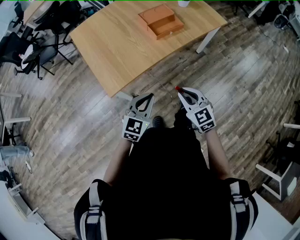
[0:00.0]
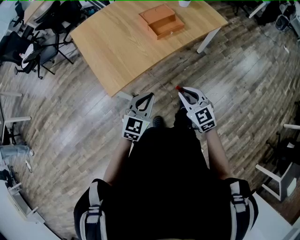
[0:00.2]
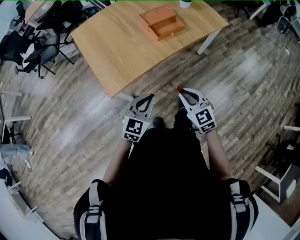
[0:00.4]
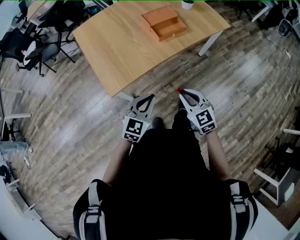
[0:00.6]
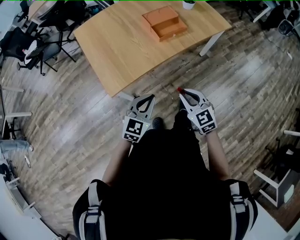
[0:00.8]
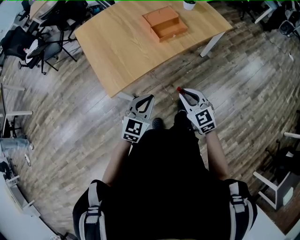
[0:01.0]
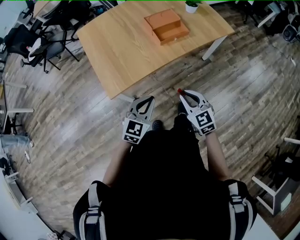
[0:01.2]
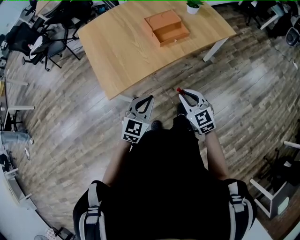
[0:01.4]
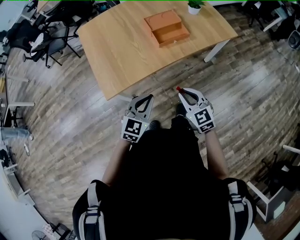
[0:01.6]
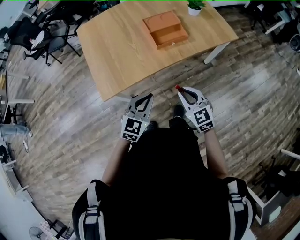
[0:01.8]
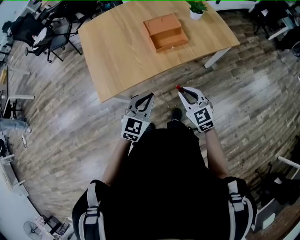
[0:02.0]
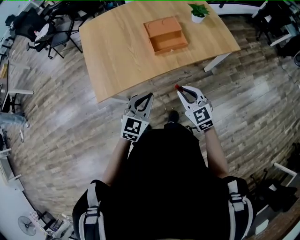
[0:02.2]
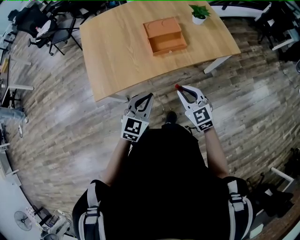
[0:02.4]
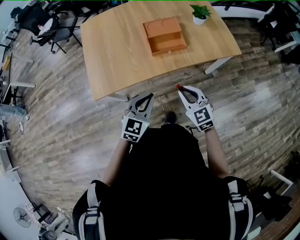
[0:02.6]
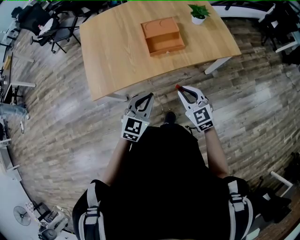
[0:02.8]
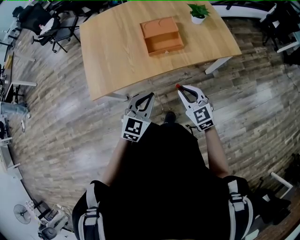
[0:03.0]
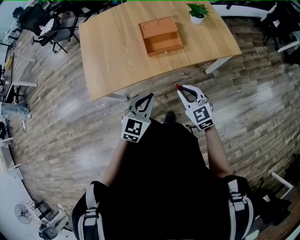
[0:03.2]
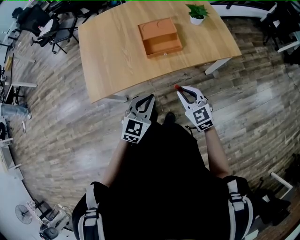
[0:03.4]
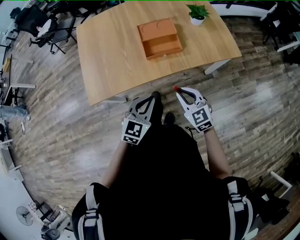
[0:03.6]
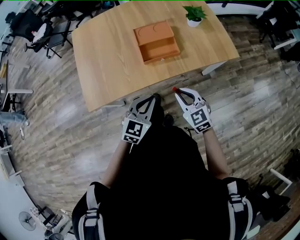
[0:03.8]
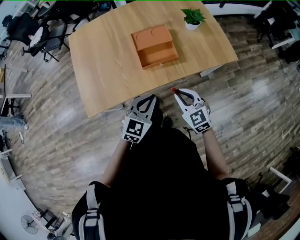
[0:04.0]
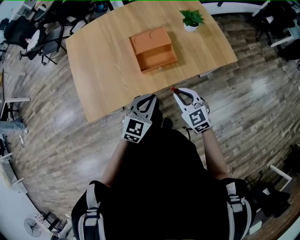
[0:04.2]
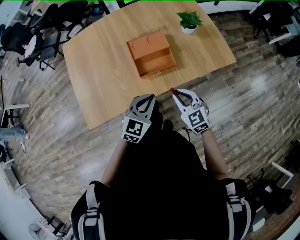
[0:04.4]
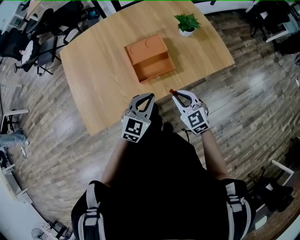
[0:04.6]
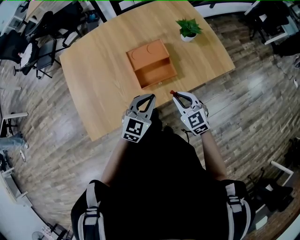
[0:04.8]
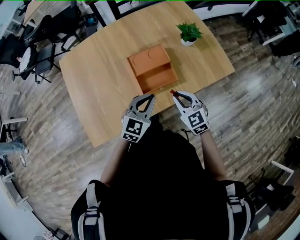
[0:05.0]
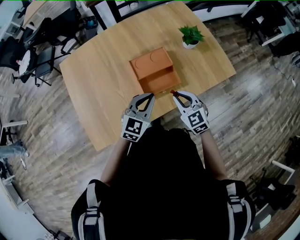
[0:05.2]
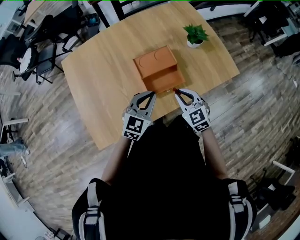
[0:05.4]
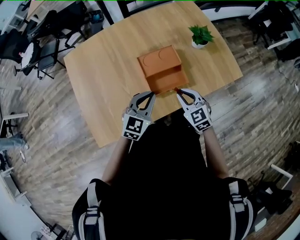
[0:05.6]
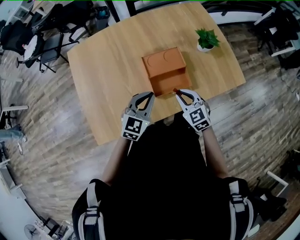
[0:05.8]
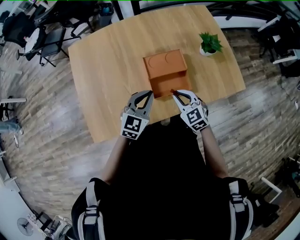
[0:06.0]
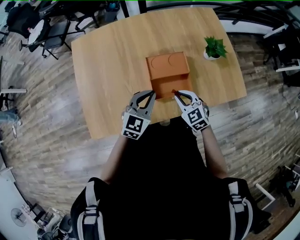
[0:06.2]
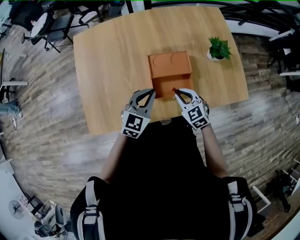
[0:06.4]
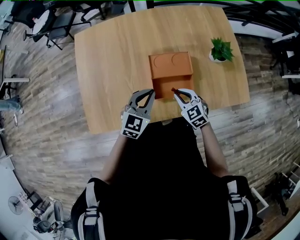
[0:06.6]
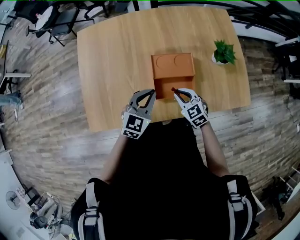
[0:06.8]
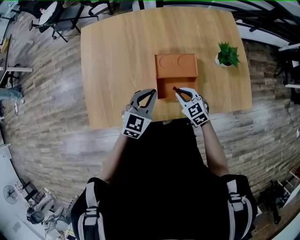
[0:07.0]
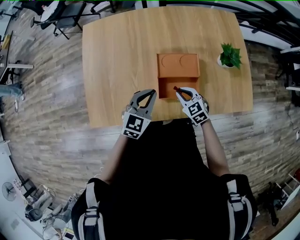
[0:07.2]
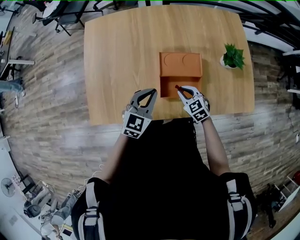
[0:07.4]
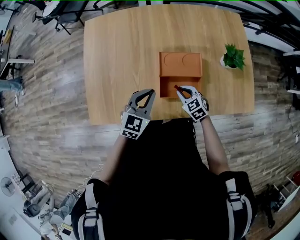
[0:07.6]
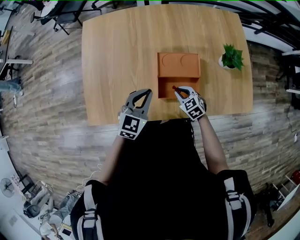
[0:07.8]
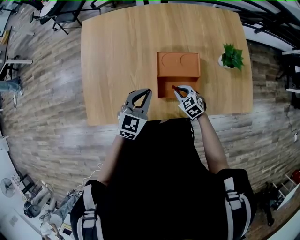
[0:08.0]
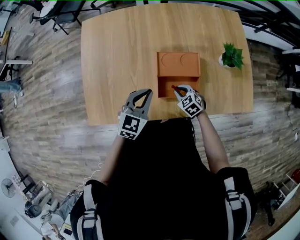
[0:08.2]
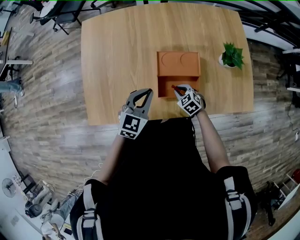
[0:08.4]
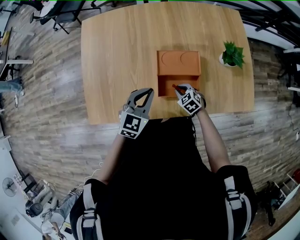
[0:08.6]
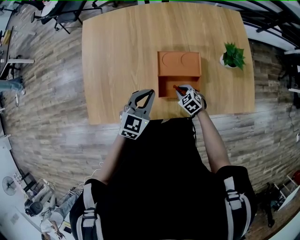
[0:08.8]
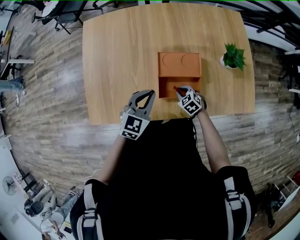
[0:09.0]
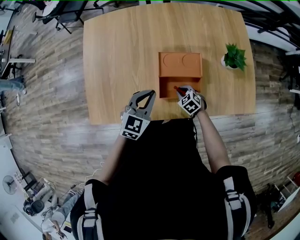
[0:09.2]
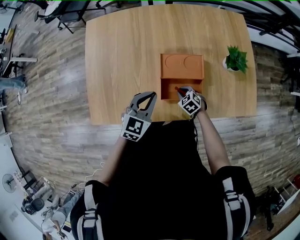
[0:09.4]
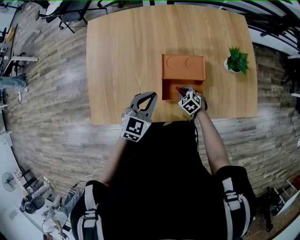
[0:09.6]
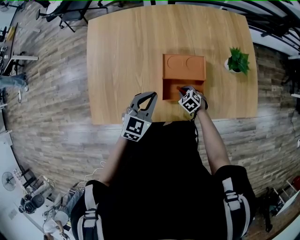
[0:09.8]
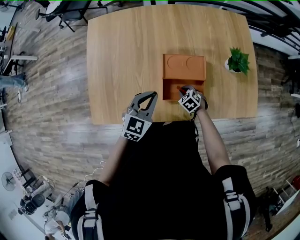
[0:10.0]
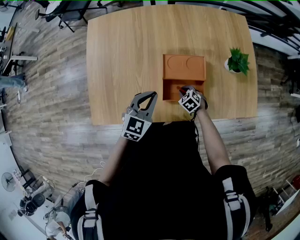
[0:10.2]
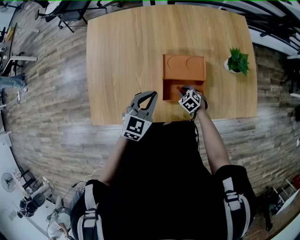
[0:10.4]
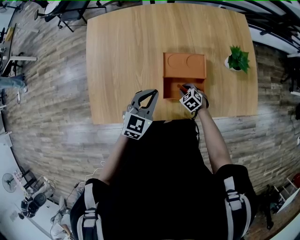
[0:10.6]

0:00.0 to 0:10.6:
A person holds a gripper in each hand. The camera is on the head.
0:00.0 to 0:01.6: Both grippers travel together forward and to the right, some 10 cm.
0:01.6 to 0:03.0: The grippers both shift to the right and forward by some 20 cm.
0:03.0 to 0:04.6: The two grippers go some 20 cm forward.
0:04.6 to 0:06.0: Both grippers move forward and to the left, some 15 cm.
0:06.0 to 0:07.6: The right gripper heads downward and forward, covering about 10 cm.
0:07.6 to 0:09.0: The right gripper goes approximately 5 cm downward.
0:09.0 to 0:10.6: The grippers move only a little.

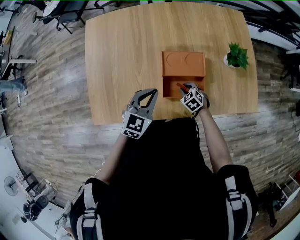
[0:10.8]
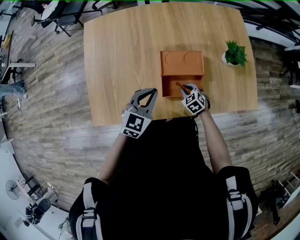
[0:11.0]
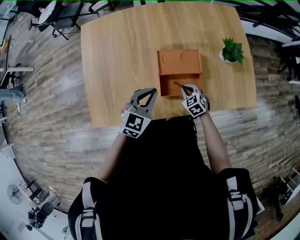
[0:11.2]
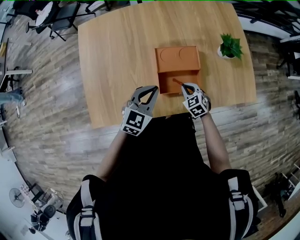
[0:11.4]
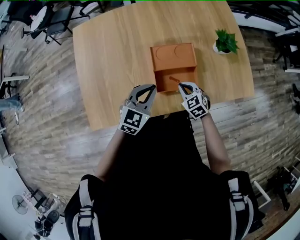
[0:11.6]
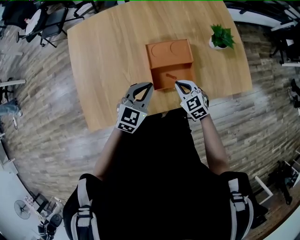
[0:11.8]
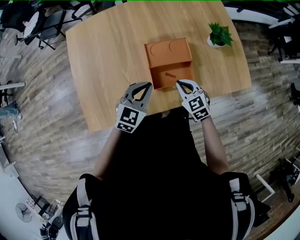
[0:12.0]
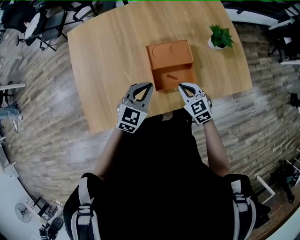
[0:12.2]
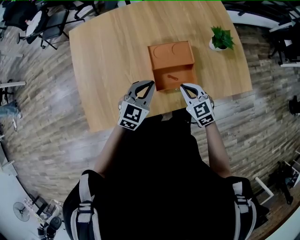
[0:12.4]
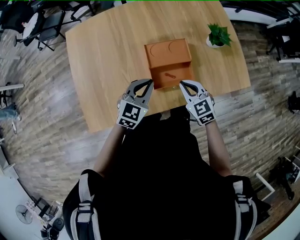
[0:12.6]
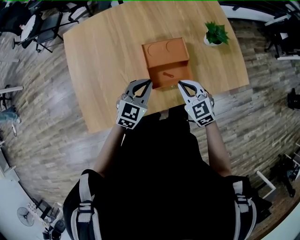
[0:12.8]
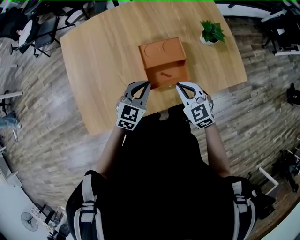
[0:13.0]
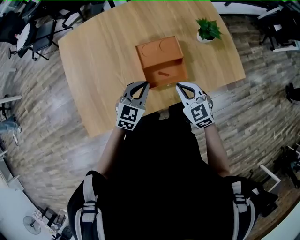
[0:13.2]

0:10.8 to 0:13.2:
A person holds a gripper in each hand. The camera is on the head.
0:10.8 to 0:12.0: The right gripper is displaced upward by approximately 15 cm, and changes its angle by roughly 30 degrees.
0:12.0 to 0:13.2: The right gripper travels upward by roughly 5 cm.

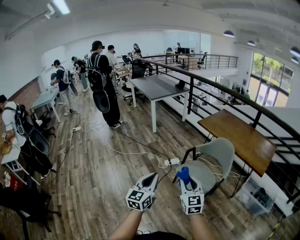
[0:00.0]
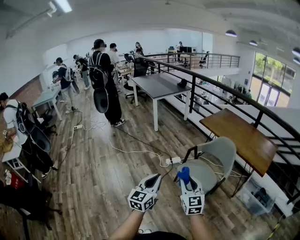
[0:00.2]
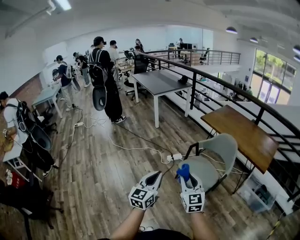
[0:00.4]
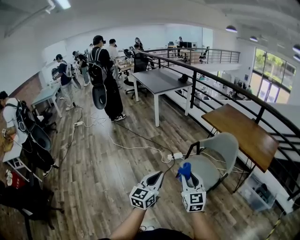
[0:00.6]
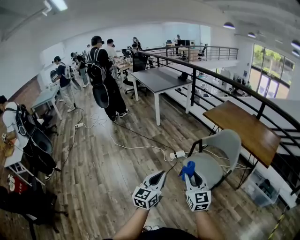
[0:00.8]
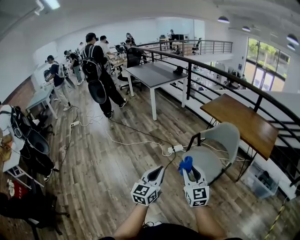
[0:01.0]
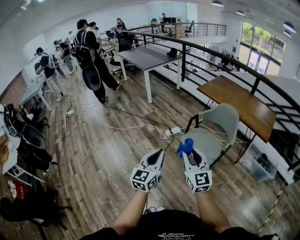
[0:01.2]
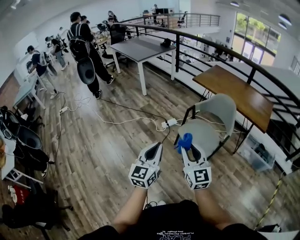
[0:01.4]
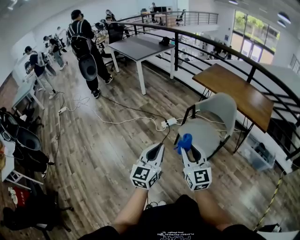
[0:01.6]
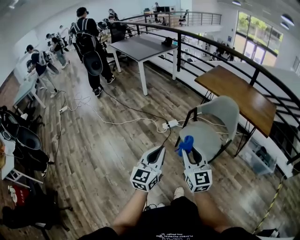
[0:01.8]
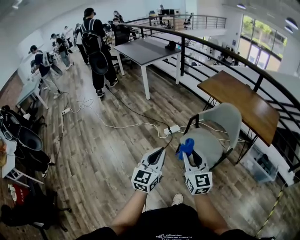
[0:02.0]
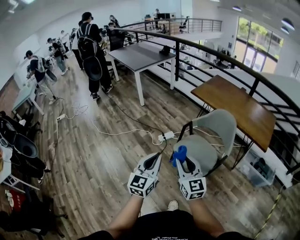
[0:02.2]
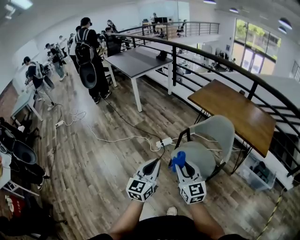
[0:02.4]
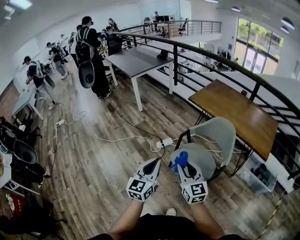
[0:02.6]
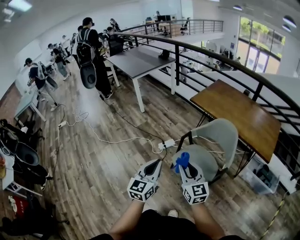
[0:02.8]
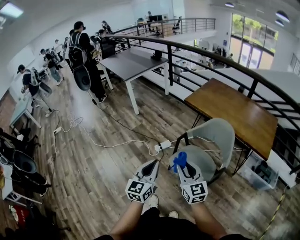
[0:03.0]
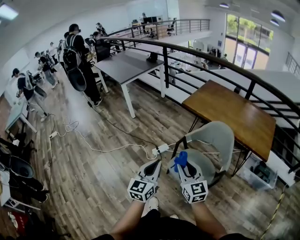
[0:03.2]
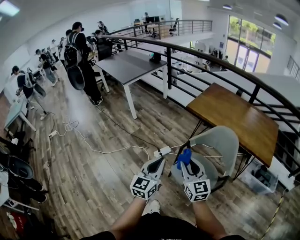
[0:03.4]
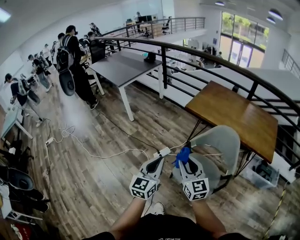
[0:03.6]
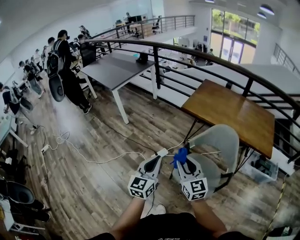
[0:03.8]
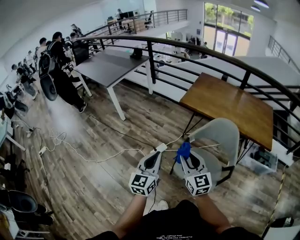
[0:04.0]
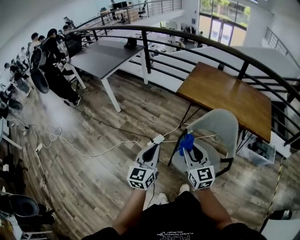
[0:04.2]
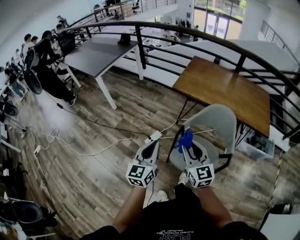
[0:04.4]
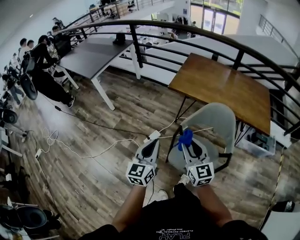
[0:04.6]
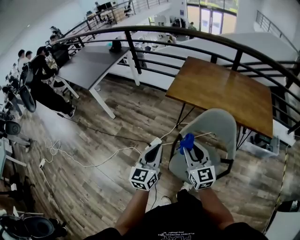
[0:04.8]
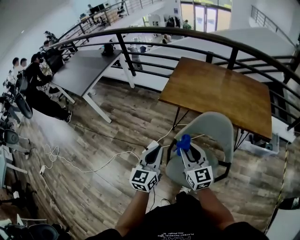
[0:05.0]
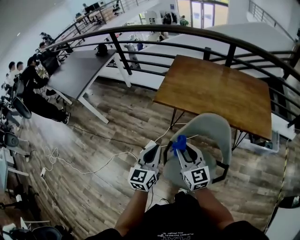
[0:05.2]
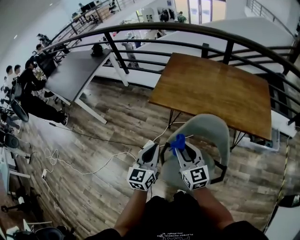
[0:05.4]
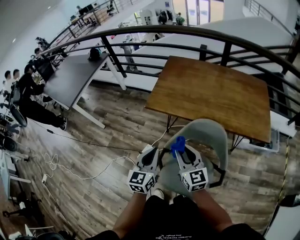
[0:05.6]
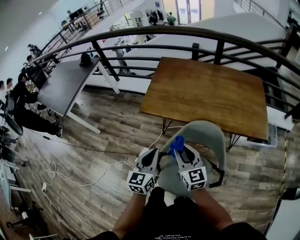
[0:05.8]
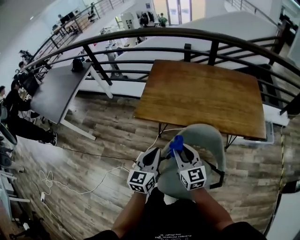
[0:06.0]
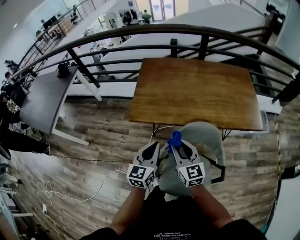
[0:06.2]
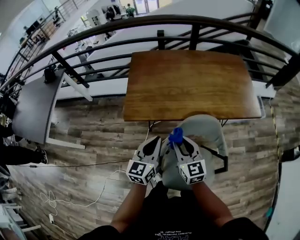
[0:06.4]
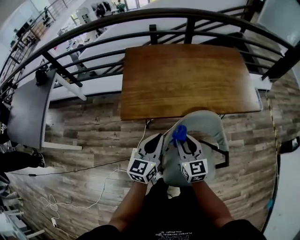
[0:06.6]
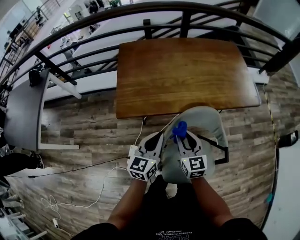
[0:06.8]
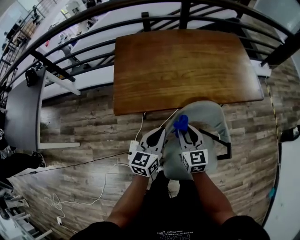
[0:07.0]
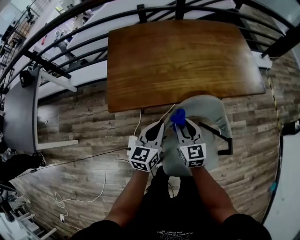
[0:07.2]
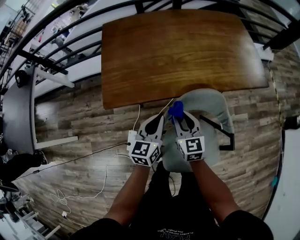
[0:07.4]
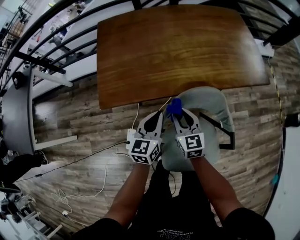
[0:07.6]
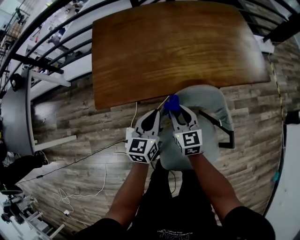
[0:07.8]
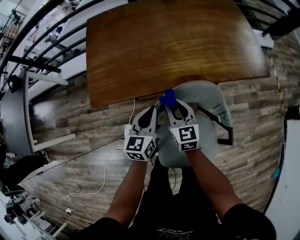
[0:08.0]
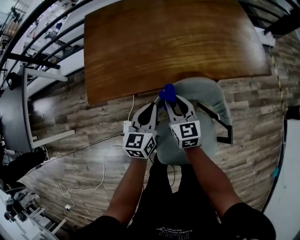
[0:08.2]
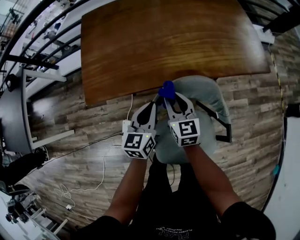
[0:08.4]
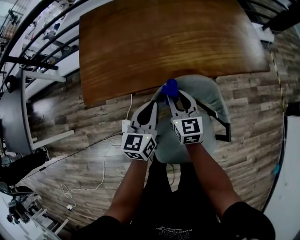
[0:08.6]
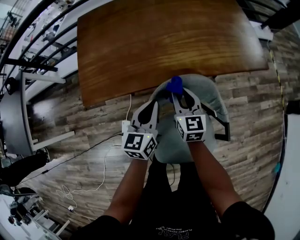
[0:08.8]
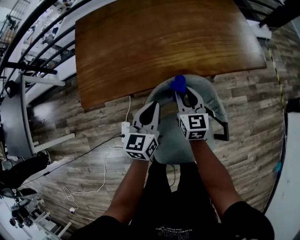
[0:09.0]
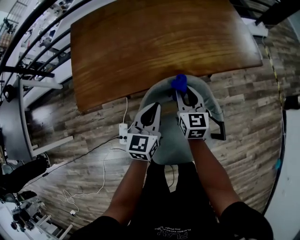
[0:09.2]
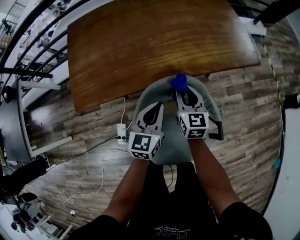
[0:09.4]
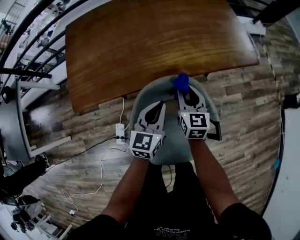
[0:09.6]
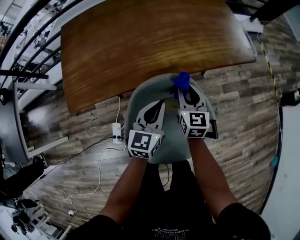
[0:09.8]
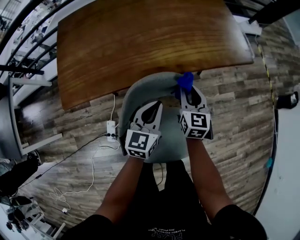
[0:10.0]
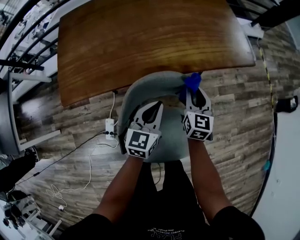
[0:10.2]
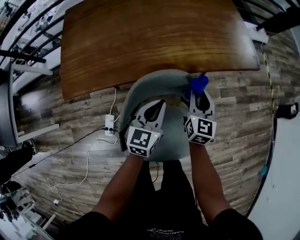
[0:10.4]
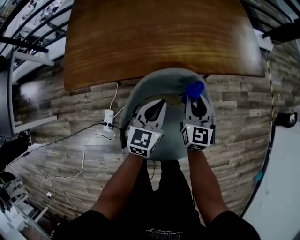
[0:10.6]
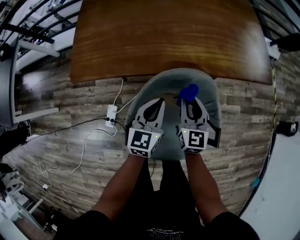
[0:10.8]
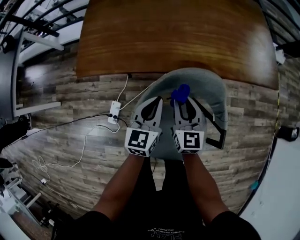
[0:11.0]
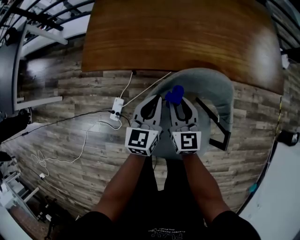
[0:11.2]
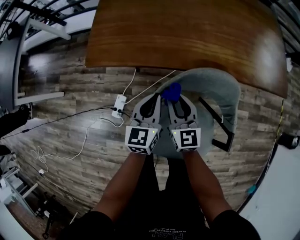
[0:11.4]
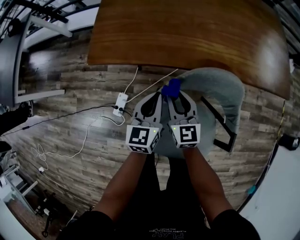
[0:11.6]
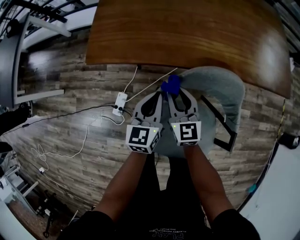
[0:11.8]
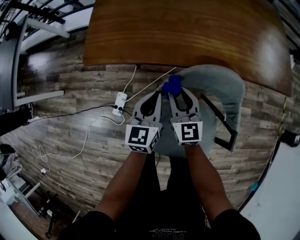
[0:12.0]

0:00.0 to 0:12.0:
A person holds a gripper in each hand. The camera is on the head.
0:00.0 to 0:01.6: The left gripper heads to the left, covering approximately 5 cm. The right gripper heads to the left, covering about 10 cm.
0:01.6 to 0:03.0: The grippers both shift forward and to the right by some 25 cm.
0:03.0 to 0:04.4: The two grippers go about 20 cm forward.
0:04.4 to 0:06.0: The two grippers go some 35 cm forward and to the right. The left gripper changes its angle by about 20 degrees.
0:06.0 to 0:07.6: The right gripper is displaced downward and forward by some 20 cm, and swivels about 30 degrees, while the left gripper heads forward and downward, covering roughly 20 cm, and turns by approximately 20 degrees.
0:07.6 to 0:09.0: The right gripper travels to the right and forward by about 10 cm. The left gripper travels to the right by approximately 10 cm.
0:09.0 to 0:10.4: The two grippers go some 10 cm to the right.
0:10.4 to 0:12.0: The left gripper moves some 20 cm, and turns by some 20 degrees. Meanwhile the right gripper changes place by about 25 cm, and rotates approximately 30 degrees.
